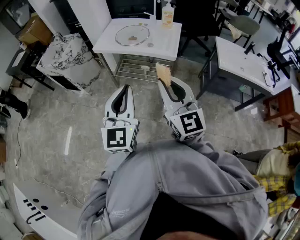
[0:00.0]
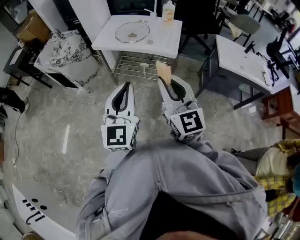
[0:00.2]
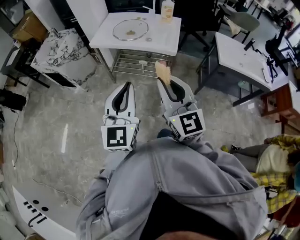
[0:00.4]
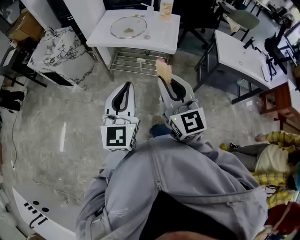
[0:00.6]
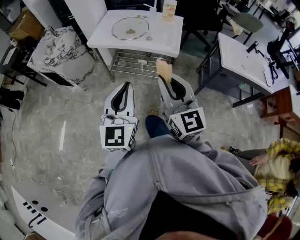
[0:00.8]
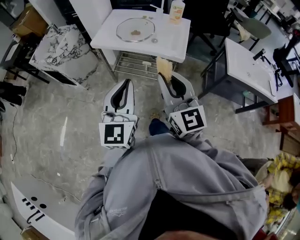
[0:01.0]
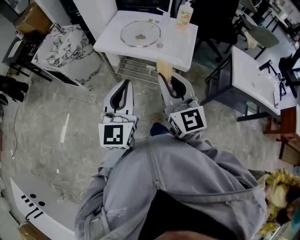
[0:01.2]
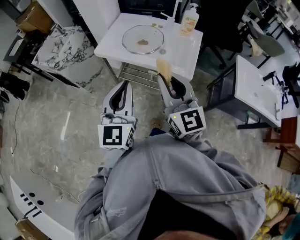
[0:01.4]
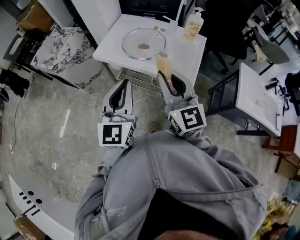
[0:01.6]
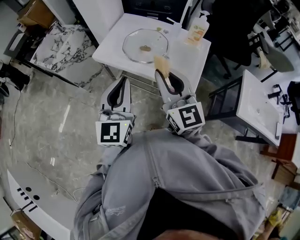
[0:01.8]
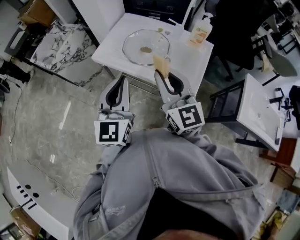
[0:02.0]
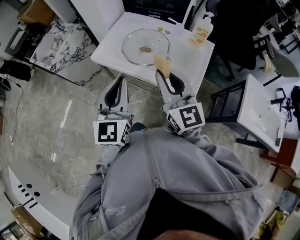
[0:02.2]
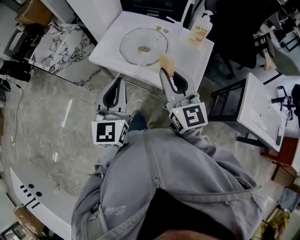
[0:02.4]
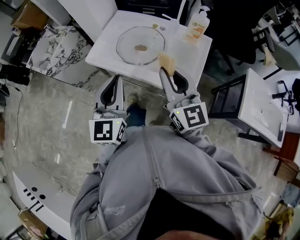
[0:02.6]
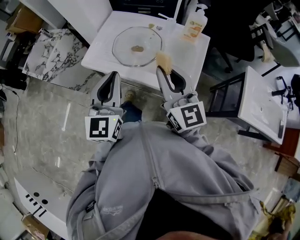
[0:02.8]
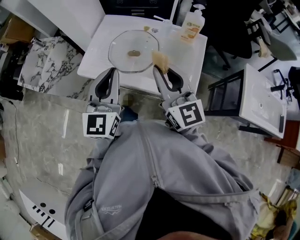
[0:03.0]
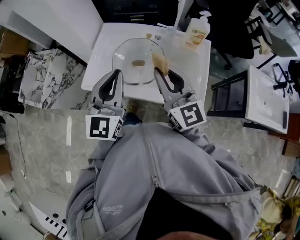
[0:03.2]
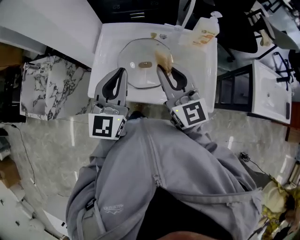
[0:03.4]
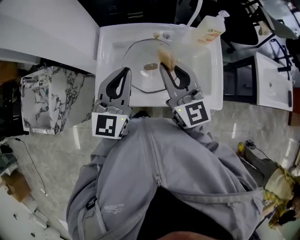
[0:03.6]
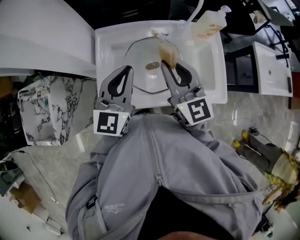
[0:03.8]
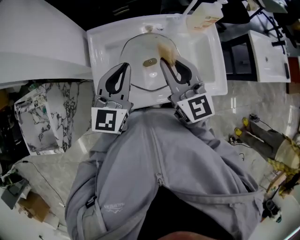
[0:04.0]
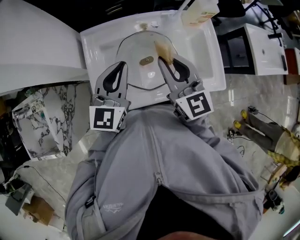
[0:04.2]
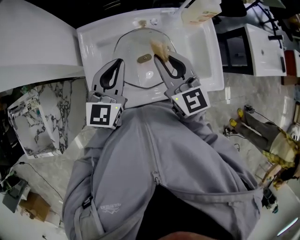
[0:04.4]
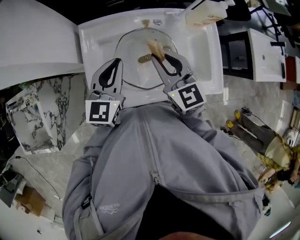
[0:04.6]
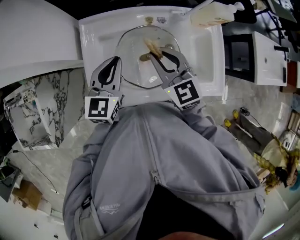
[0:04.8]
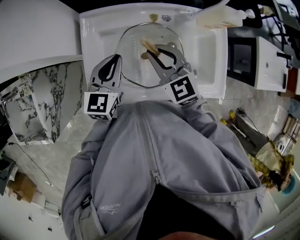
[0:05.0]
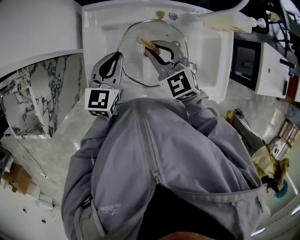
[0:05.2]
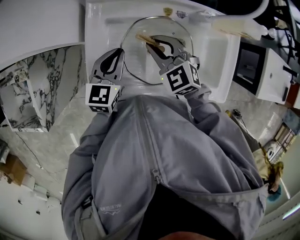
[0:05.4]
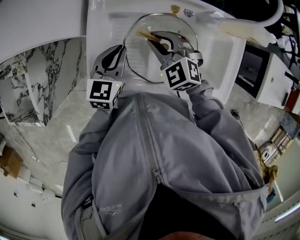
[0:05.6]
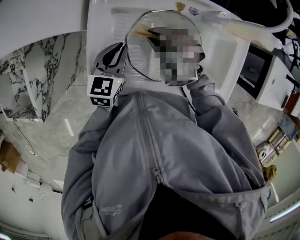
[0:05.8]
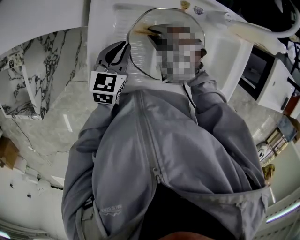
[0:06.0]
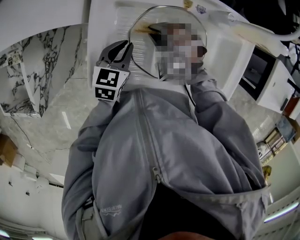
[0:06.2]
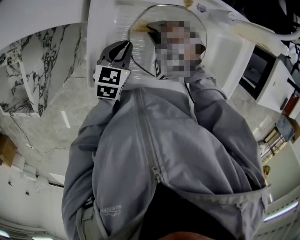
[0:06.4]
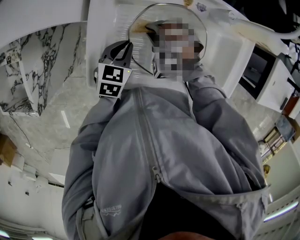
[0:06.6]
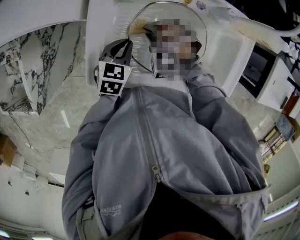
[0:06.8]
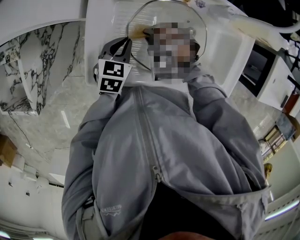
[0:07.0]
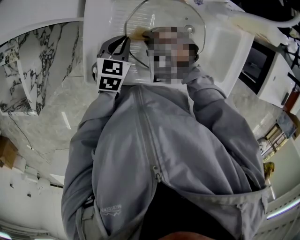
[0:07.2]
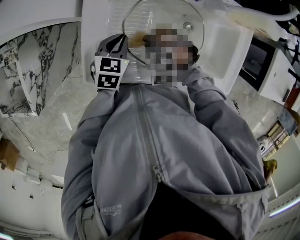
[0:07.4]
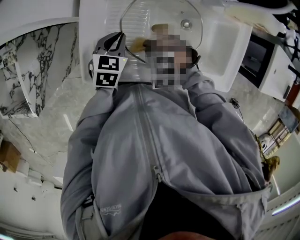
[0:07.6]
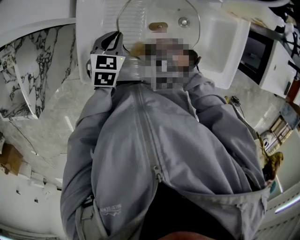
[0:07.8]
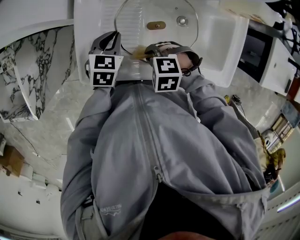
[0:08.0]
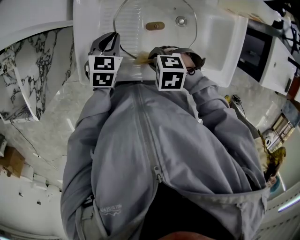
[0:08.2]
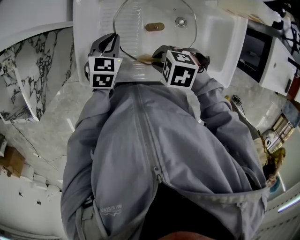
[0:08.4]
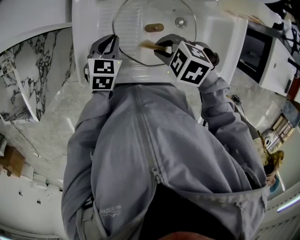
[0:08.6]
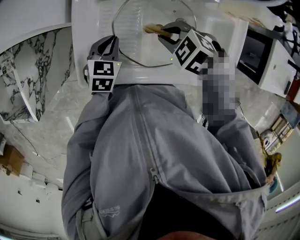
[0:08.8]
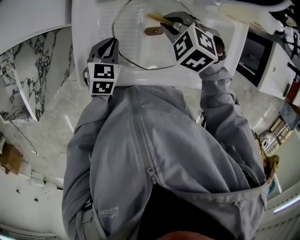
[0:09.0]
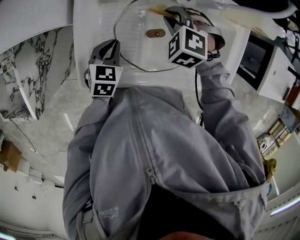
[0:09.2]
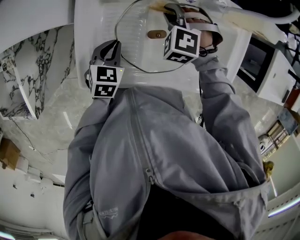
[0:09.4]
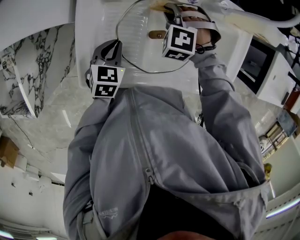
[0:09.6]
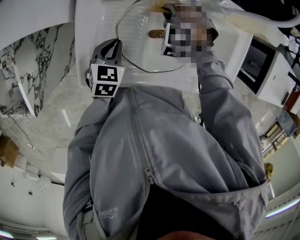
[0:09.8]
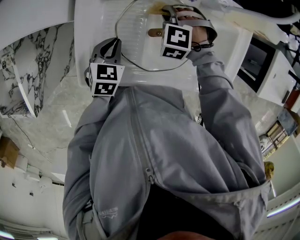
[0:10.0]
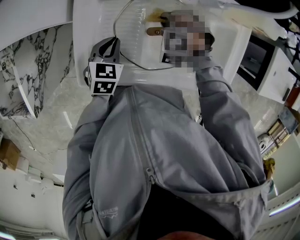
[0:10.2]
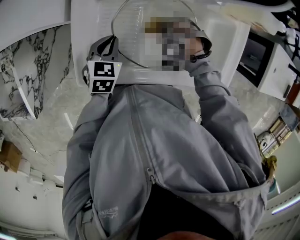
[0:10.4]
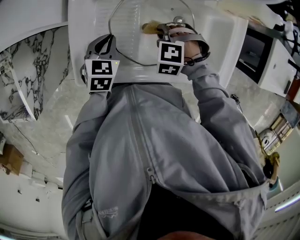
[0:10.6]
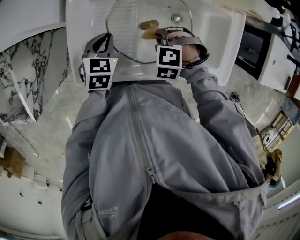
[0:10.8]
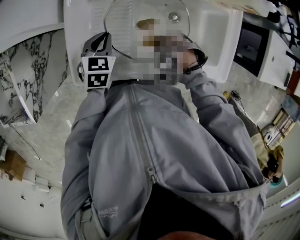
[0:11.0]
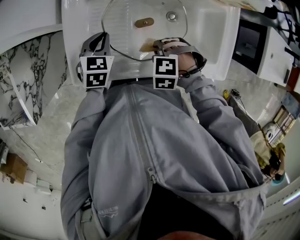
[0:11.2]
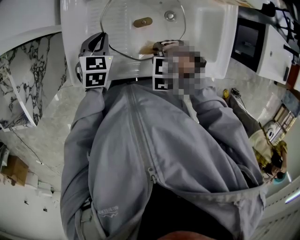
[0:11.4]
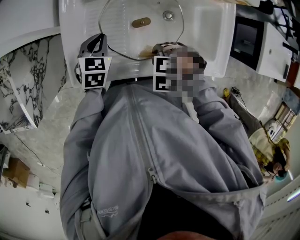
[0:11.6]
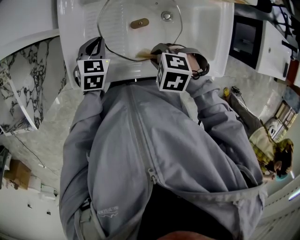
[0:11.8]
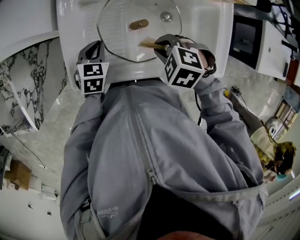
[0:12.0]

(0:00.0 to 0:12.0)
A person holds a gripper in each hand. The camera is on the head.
0:00.0 - 0:01.6: The two grippers go some 30 cm forward.
0:01.6 - 0:03.0: The two grippers go some 20 cm forward.
0:03.0 - 0:04.4: The right gripper ends up some 25 cm from where it was, and changes its angle by about 30 degrees. Meanwhile the left gripper moves approximately 30 cm, and rotates about 40 degrees.
0:04.4 - 0:06.0: The left gripper is displaced downward by some 20 cm, and turns by some 30 degrees, while the right gripper moves downward and to the left, about 25 cm, and points its fingers about 40 degrees further downward.
0:06.0 - 0:07.6: The right gripper shifts by roughly 15 cm, and turns by approximately 30 degrees; the left gripper moves roughly 5 cm.
0:07.6 - 0:09.0: The right gripper ends up about 15 cm from where it was, and turns by about 30 degrees.
0:09.0 - 0:10.4: The right gripper shifts about 10 cm downward, and turns by roughly 30 degrees.
0:10.4 - 0:12.0: The right gripper changes place by approximately 15 cm, and rotates approximately 30 degrees.

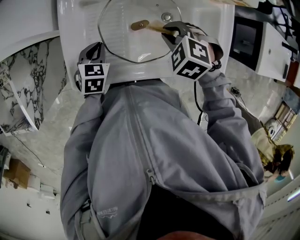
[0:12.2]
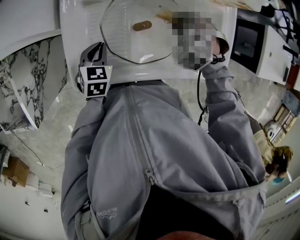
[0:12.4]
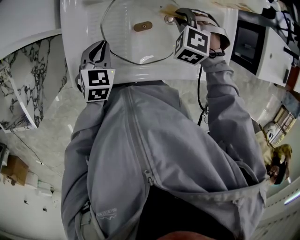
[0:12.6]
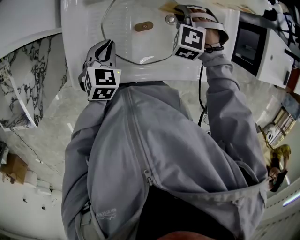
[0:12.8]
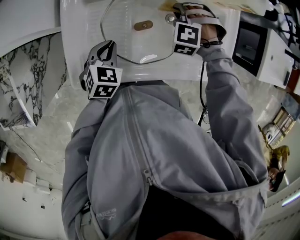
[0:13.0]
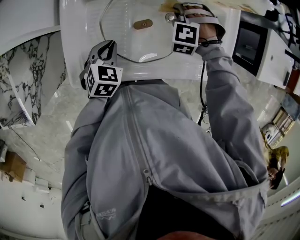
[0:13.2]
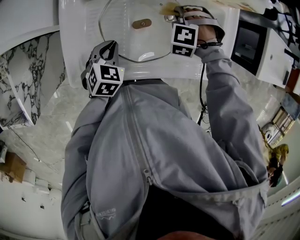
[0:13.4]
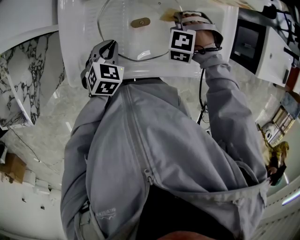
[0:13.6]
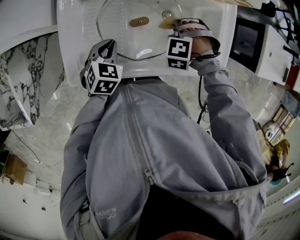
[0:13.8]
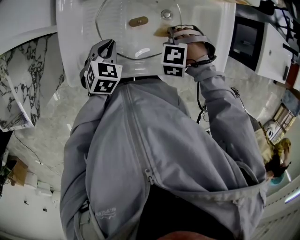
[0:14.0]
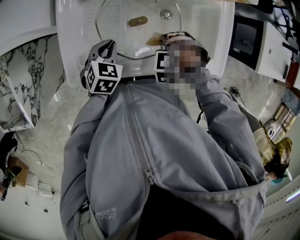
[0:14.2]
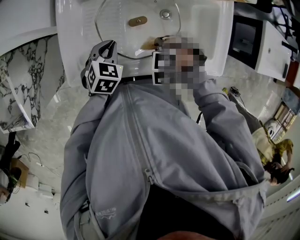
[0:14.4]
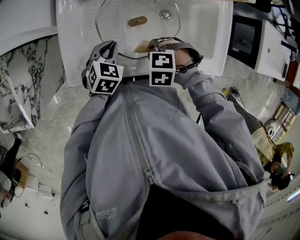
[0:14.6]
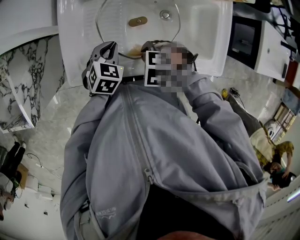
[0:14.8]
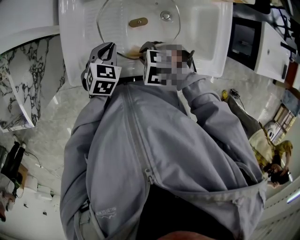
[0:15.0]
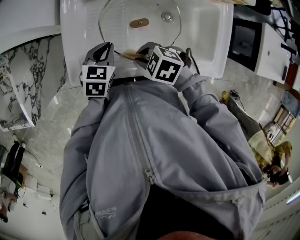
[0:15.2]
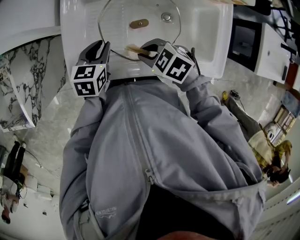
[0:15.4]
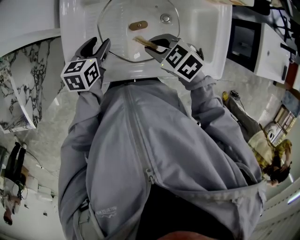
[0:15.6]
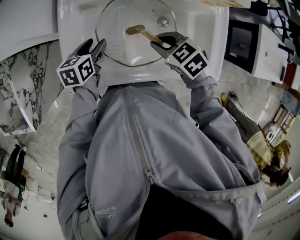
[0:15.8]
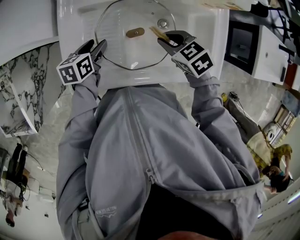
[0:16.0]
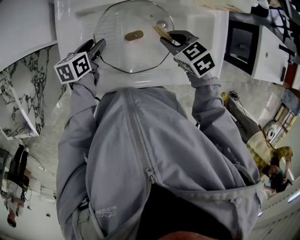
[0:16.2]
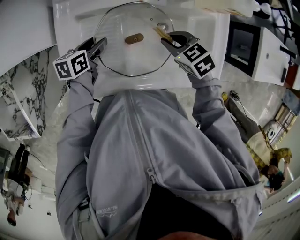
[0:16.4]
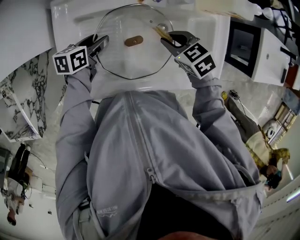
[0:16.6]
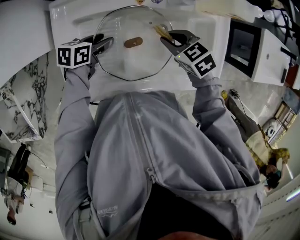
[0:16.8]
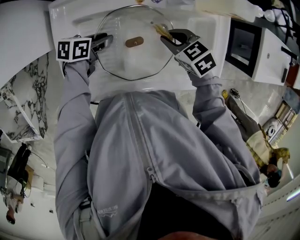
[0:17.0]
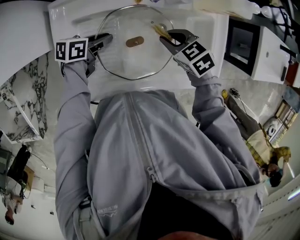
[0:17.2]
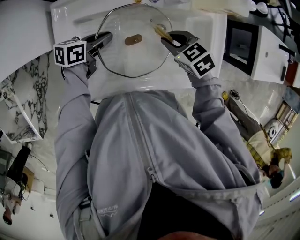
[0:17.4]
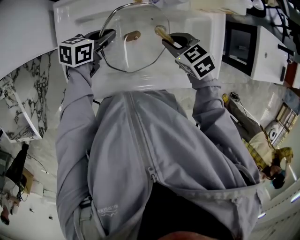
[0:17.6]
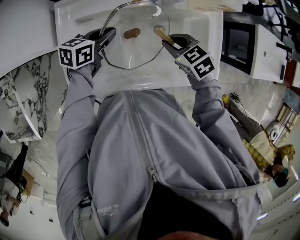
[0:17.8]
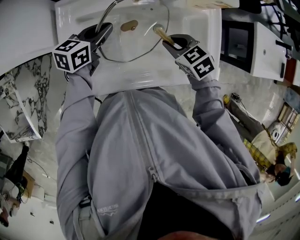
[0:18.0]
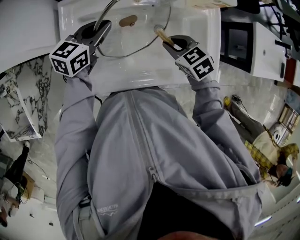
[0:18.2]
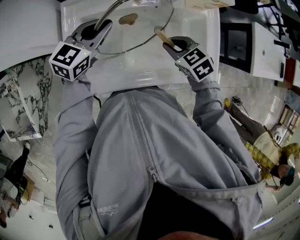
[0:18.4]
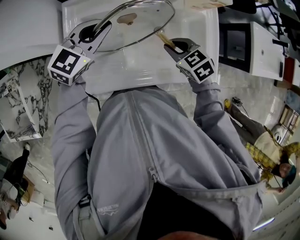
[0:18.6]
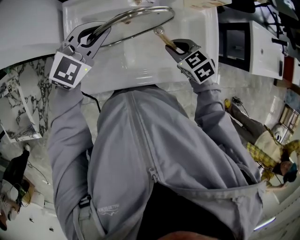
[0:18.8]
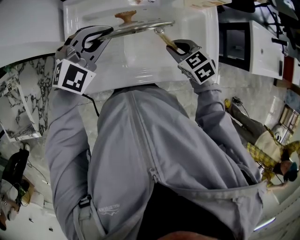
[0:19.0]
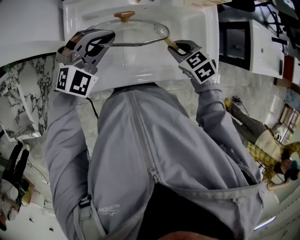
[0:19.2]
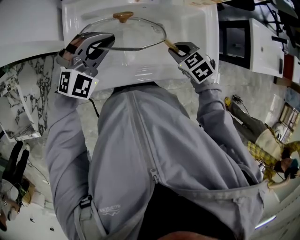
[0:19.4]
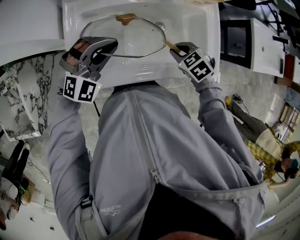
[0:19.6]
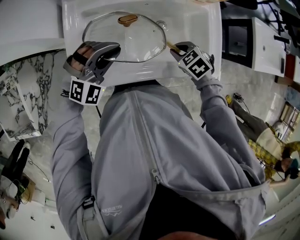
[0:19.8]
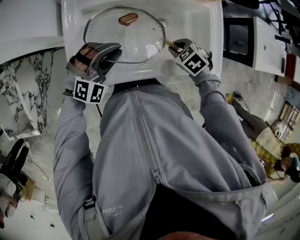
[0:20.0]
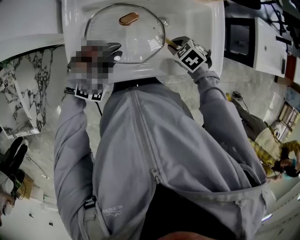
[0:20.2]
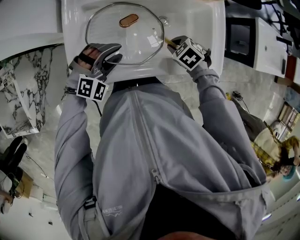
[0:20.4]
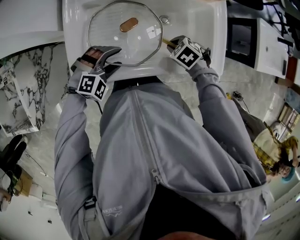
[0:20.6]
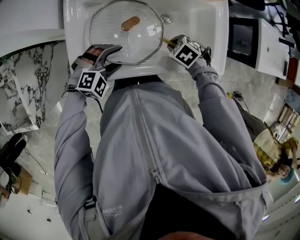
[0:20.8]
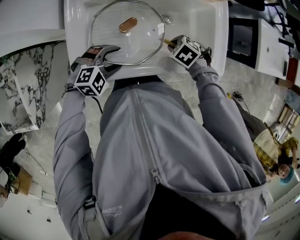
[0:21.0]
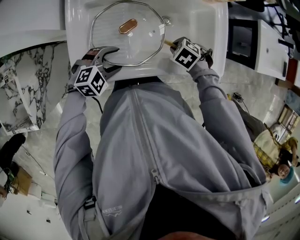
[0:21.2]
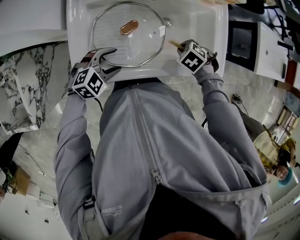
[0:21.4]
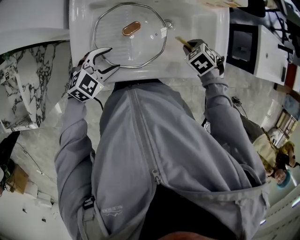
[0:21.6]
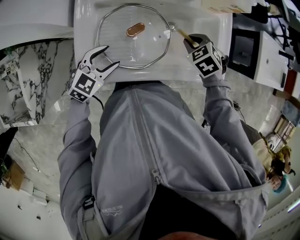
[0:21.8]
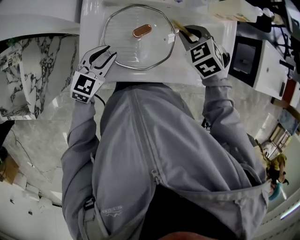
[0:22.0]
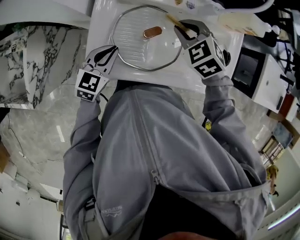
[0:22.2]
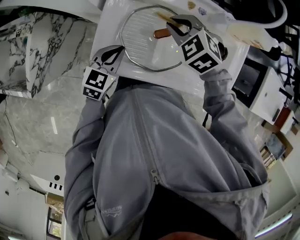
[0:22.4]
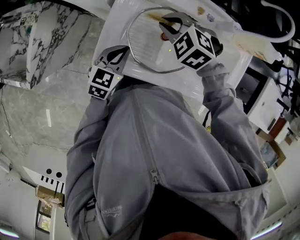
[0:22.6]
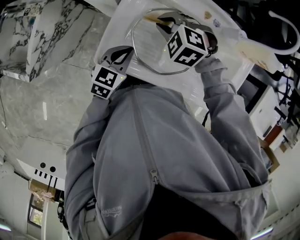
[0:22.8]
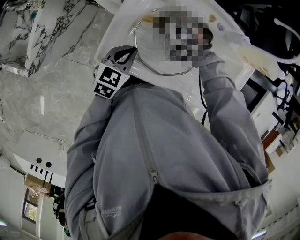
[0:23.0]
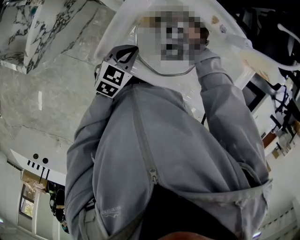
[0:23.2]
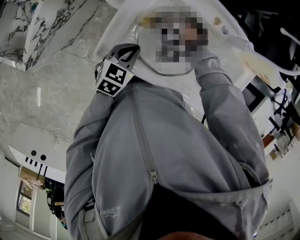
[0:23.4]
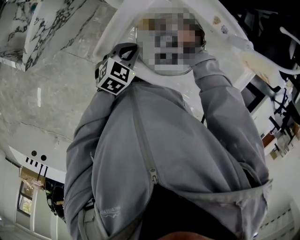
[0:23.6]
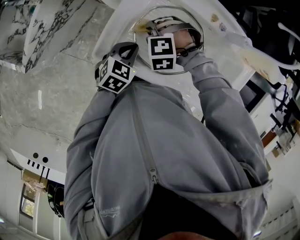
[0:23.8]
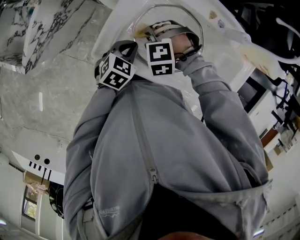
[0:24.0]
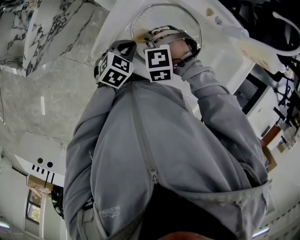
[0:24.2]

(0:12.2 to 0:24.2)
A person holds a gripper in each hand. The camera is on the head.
0:12.2 - 0:13.8: The right gripper heads downward, covering about 10 cm, and swivels roughly 40 degrees, while the left gripper ends up about 5 cm from where it was.
0:13.8 - 0:15.2: The right gripper changes place by about 20 cm, and changes its angle by roughly 60 degrees.
0:15.2 - 0:16.6: The left gripper changes place by about 10 cm, rotates about 30 degrees, and opens its fingers, while the right gripper moves some 20 cm, and turns by some 30 degrees.
0:16.6 - 0:18.2: The right gripper changes place by roughly 5 cm; the left gripper travels upward by some 15 cm, rotates approximately 30 degrees, and closes.
0:18.2 - 0:19.8: The left gripper shifts approximately 15 cm backward, and twists roughly 70 degrees clockwise, seen from behind; the right gripper shifts about 10 cm backward and downward.
0:19.8 - 0:21.2: The left gripper travels downward by some 10 cm, rotates about 40 degrees, and opens its fingers. Meanwhile the right gripper moves downward, about 5 cm.
0:21.2 - 0:22.6: The left gripper moves approximately 10 cm, rolls counterclockwise, seen from behind, by roughly 50 degrees, and closes up; the right gripper ends up some 30 cm from where it was, and swivels about 40 degrees.
0:22.6 - 0:24.2: The left gripper moves roughly 5 cm. Meanwhile the right gripper moves approximately 15 cm, and rotates roughly 40 degrees.
